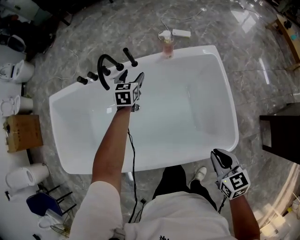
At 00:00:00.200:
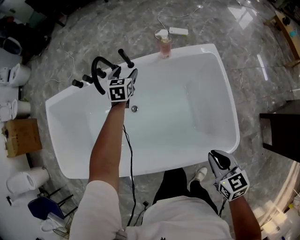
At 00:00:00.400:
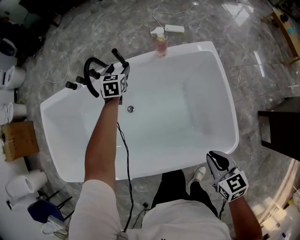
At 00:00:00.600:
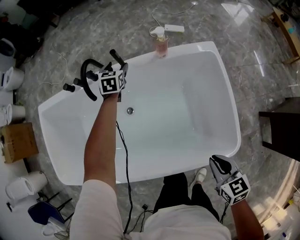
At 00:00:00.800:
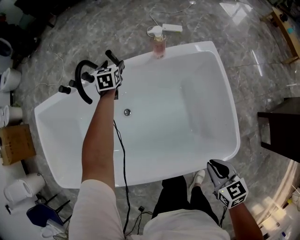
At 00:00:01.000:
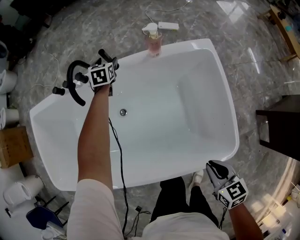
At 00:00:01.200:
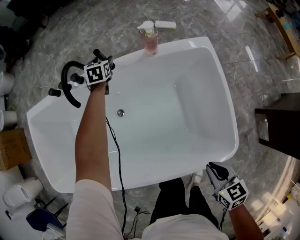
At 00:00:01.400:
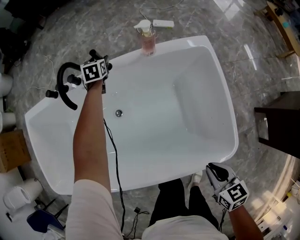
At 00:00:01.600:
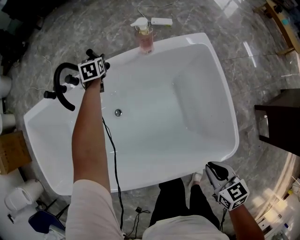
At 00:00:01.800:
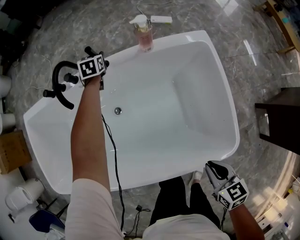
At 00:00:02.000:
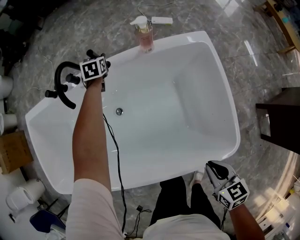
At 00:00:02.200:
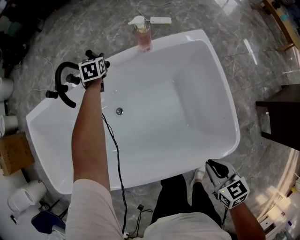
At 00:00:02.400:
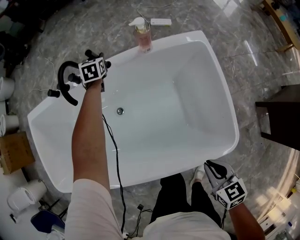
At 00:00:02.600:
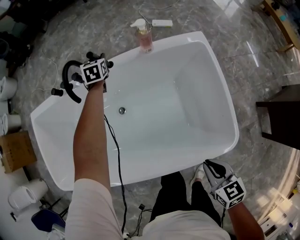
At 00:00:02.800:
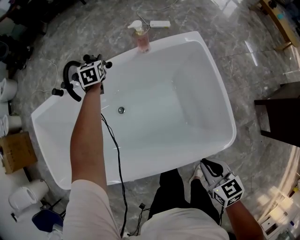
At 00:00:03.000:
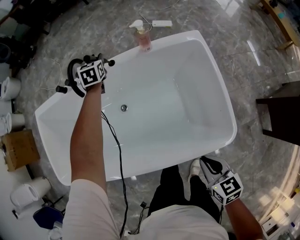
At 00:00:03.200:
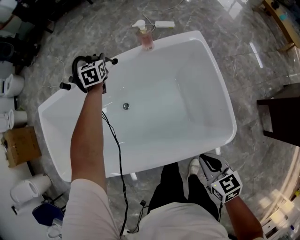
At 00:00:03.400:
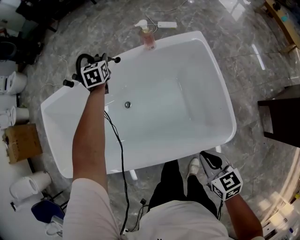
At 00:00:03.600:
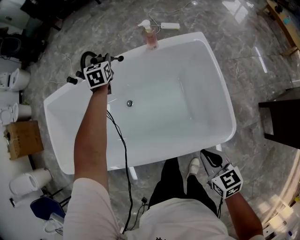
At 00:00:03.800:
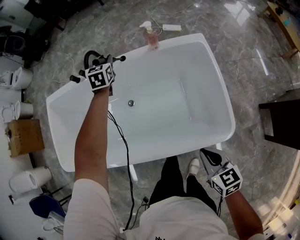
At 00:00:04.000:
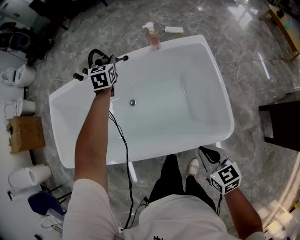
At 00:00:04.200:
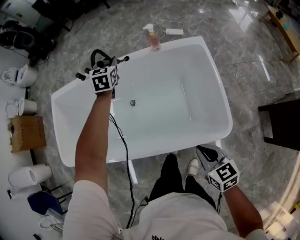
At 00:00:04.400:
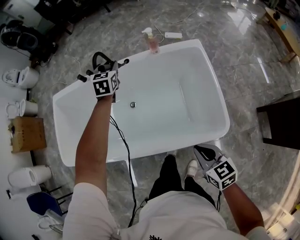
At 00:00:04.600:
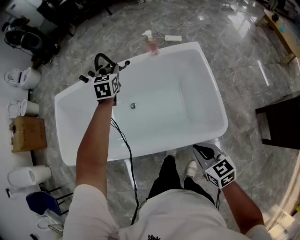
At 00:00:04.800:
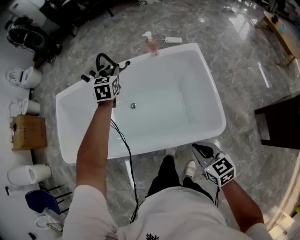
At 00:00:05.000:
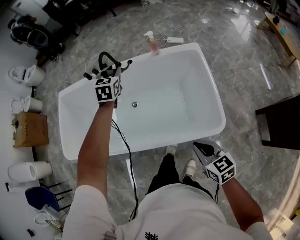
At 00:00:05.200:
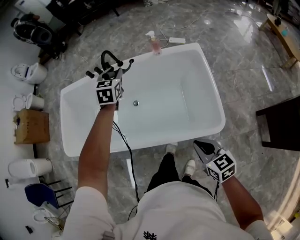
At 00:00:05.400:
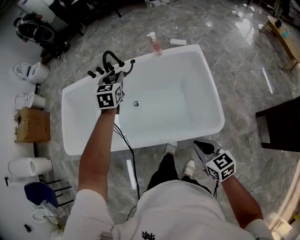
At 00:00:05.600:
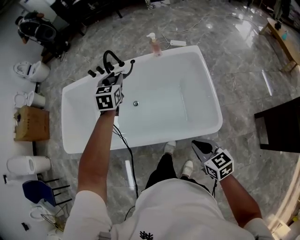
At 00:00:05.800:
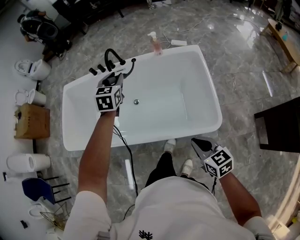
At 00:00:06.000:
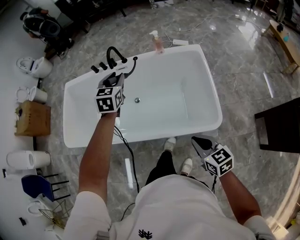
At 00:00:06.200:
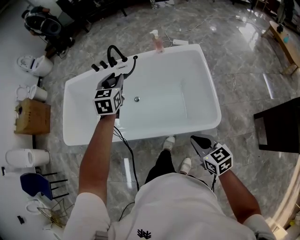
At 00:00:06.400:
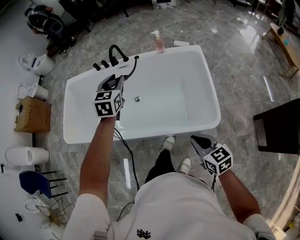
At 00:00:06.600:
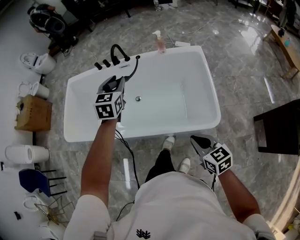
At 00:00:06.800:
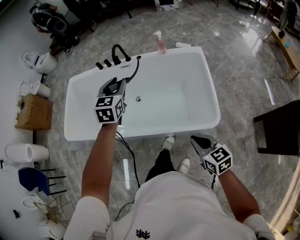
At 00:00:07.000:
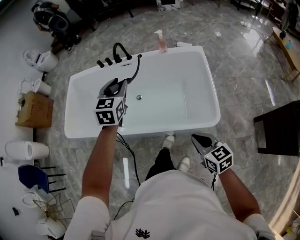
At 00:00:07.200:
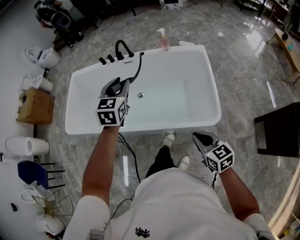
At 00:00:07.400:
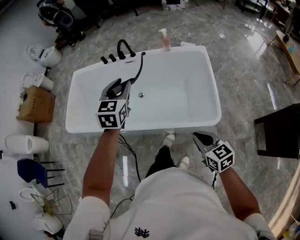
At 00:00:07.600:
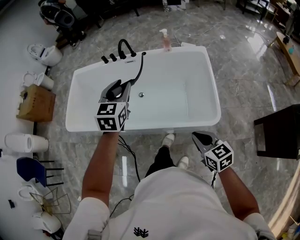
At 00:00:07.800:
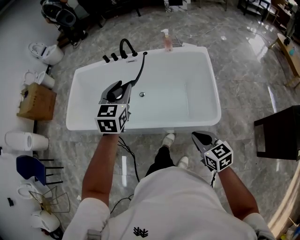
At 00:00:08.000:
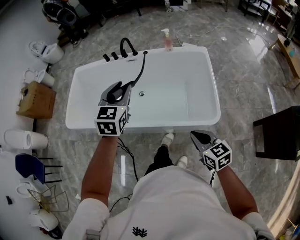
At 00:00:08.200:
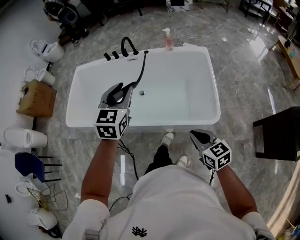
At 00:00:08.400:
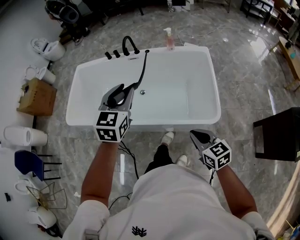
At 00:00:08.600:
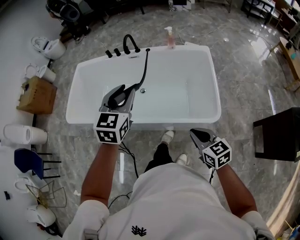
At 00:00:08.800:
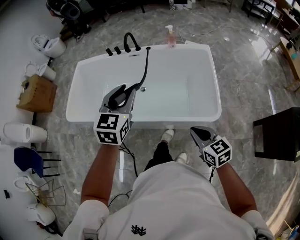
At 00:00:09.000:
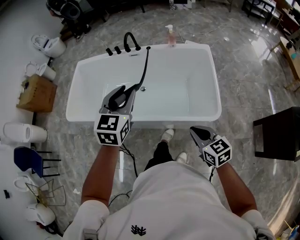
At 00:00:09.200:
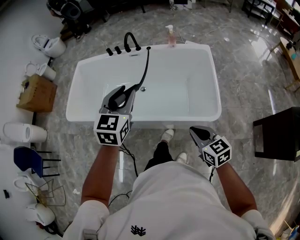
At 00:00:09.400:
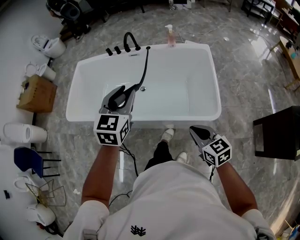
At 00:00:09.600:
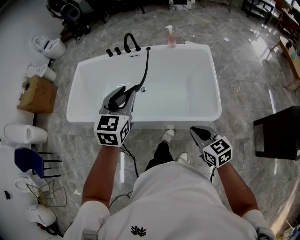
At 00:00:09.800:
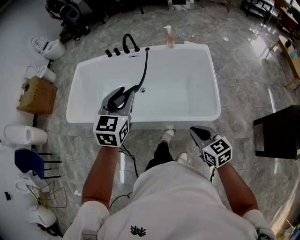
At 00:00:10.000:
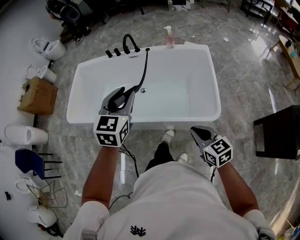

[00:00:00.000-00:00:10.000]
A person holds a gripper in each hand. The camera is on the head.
00:00:00.000 to 00:00:01.400: The left gripper travels forward and downward by some 25 cm. The right gripper moves downward, about 10 cm.
00:00:01.400 to 00:00:02.800: The left gripper heads upward, covering approximately 10 cm, and closes up. Meanwhile the right gripper ends up roughly 5 cm from where it was.
00:00:02.800 to 00:00:04.200: The left gripper moves backward and upward, some 25 cm. Meanwhile the right gripper moves upward and backward, some 10 cm.
00:00:04.200 to 00:00:05.800: The left gripper is displaced backward and upward by about 25 cm. The right gripper is displaced backward by roughly 10 cm.
00:00:05.800 to 00:00:07.200: The left gripper shifts some 15 cm backward. The right gripper moves backward, about 5 cm.
00:00:07.200 to 00:00:08.600: The left gripper travels backward by some 10 cm.
00:00:08.600 to 00:00:10.000: The grippers make only small movements.

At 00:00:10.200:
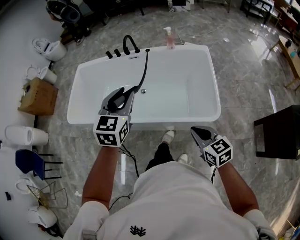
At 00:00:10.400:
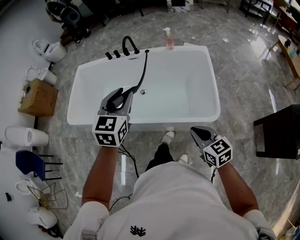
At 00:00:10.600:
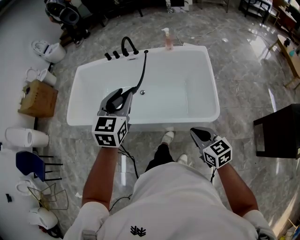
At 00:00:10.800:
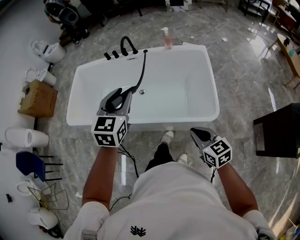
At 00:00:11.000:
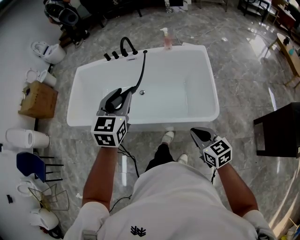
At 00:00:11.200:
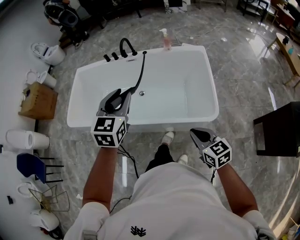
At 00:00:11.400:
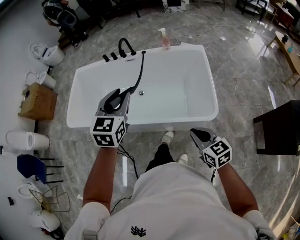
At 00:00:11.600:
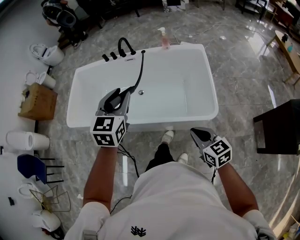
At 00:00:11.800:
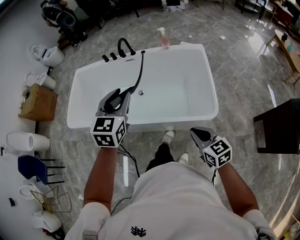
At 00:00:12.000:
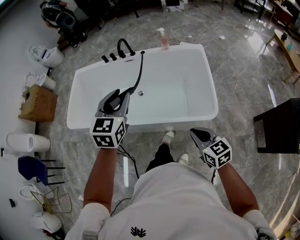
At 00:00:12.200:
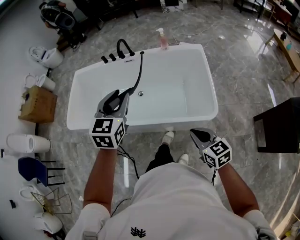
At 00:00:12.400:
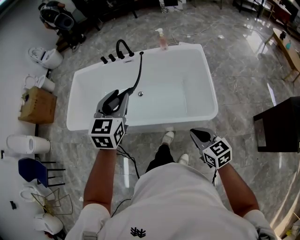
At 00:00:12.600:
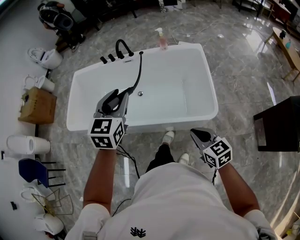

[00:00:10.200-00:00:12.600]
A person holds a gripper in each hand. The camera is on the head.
00:00:10.200 to 00:00:11.400: The grippers move only a little.
00:00:11.400 to 00:00:12.600: Neither gripper changes place.

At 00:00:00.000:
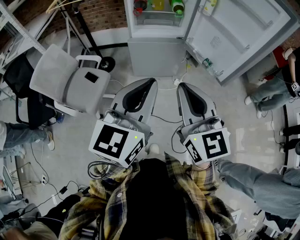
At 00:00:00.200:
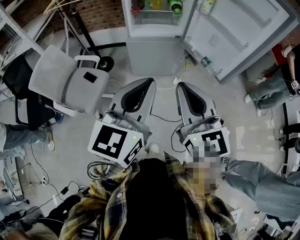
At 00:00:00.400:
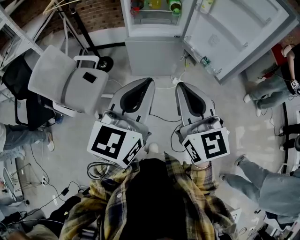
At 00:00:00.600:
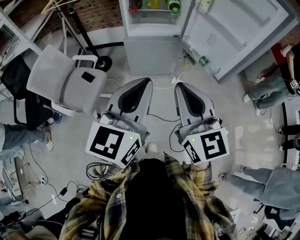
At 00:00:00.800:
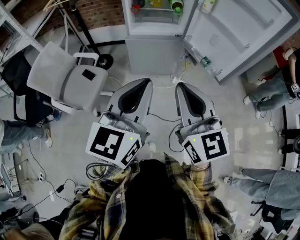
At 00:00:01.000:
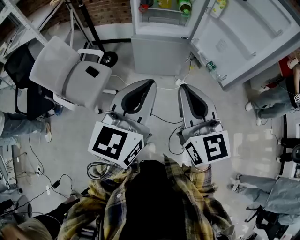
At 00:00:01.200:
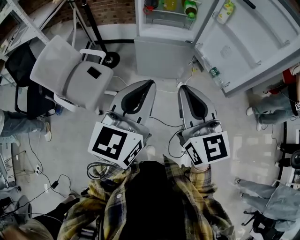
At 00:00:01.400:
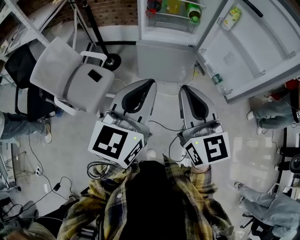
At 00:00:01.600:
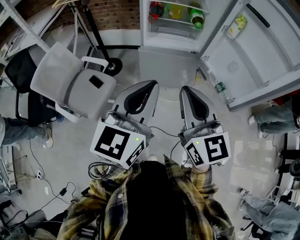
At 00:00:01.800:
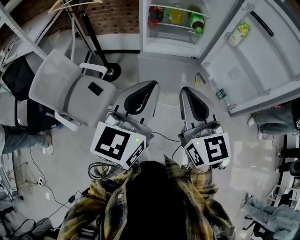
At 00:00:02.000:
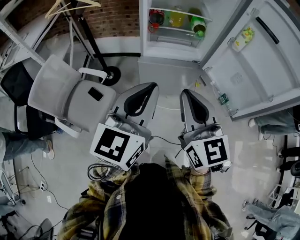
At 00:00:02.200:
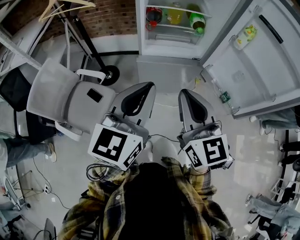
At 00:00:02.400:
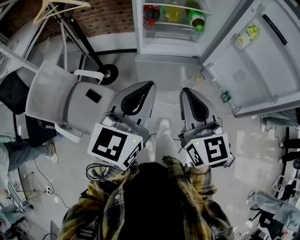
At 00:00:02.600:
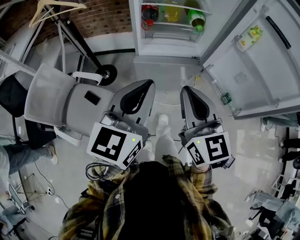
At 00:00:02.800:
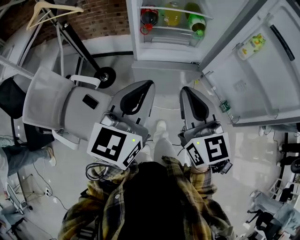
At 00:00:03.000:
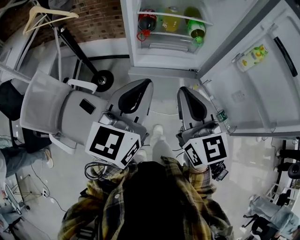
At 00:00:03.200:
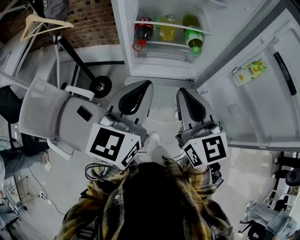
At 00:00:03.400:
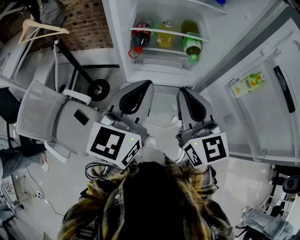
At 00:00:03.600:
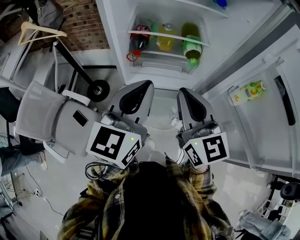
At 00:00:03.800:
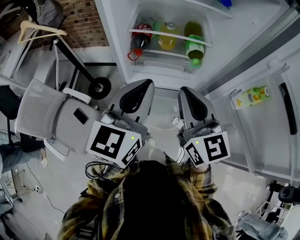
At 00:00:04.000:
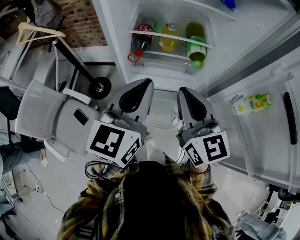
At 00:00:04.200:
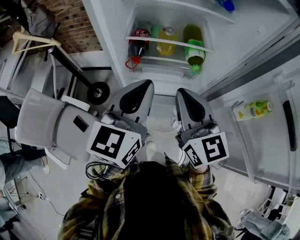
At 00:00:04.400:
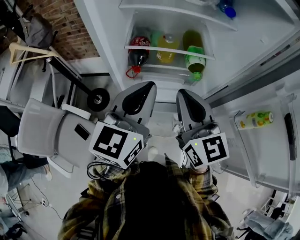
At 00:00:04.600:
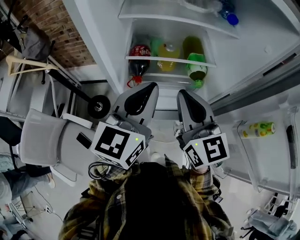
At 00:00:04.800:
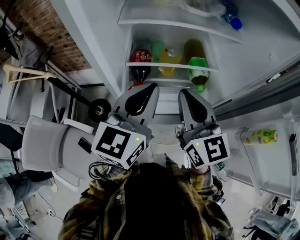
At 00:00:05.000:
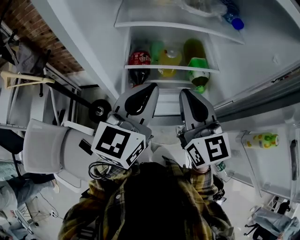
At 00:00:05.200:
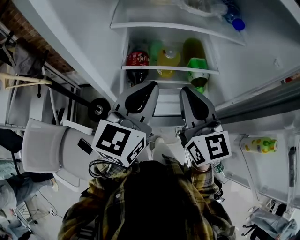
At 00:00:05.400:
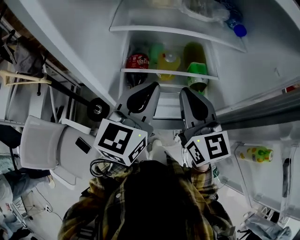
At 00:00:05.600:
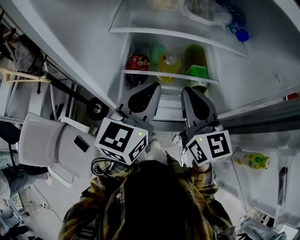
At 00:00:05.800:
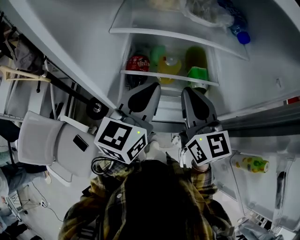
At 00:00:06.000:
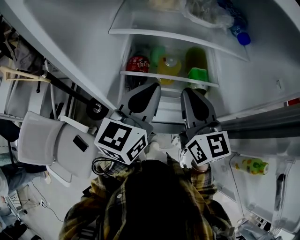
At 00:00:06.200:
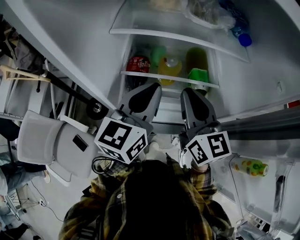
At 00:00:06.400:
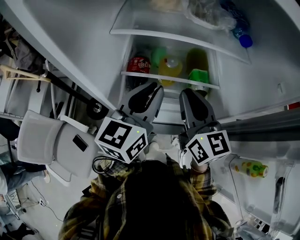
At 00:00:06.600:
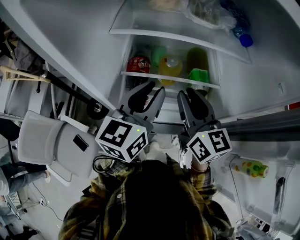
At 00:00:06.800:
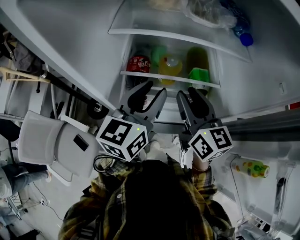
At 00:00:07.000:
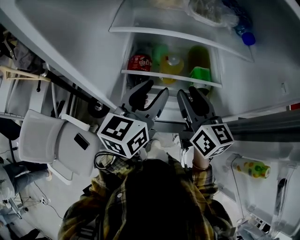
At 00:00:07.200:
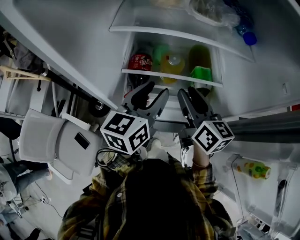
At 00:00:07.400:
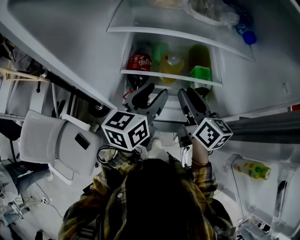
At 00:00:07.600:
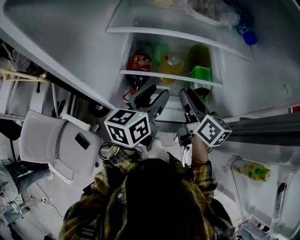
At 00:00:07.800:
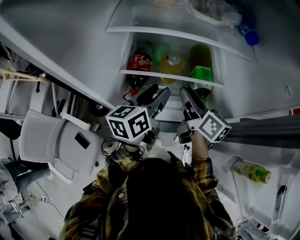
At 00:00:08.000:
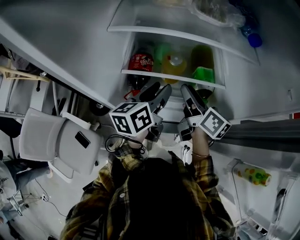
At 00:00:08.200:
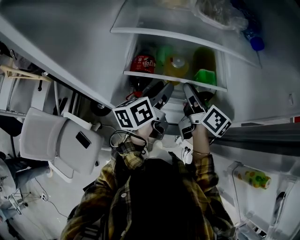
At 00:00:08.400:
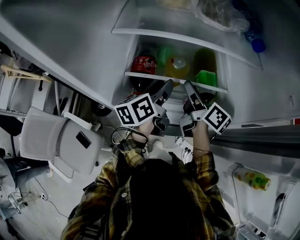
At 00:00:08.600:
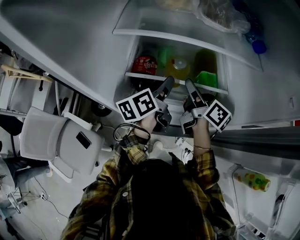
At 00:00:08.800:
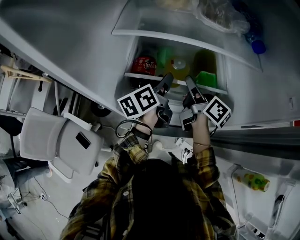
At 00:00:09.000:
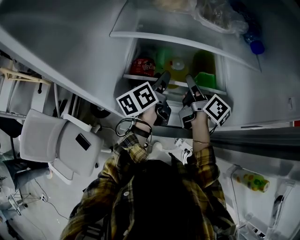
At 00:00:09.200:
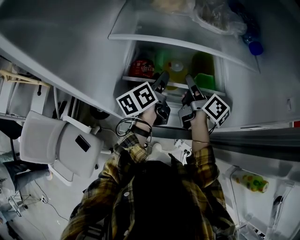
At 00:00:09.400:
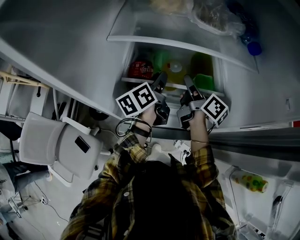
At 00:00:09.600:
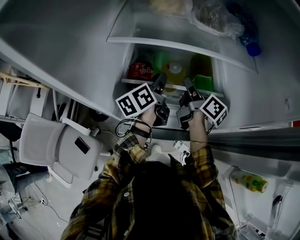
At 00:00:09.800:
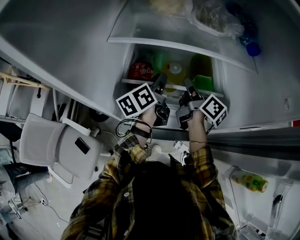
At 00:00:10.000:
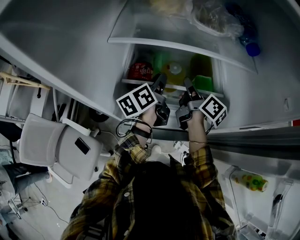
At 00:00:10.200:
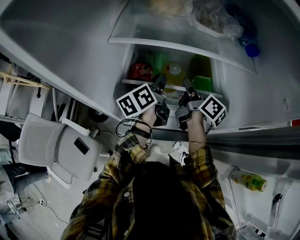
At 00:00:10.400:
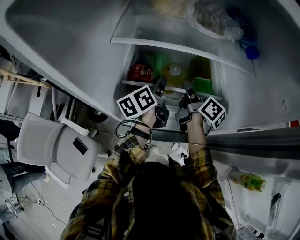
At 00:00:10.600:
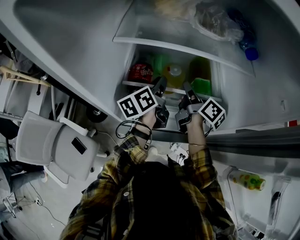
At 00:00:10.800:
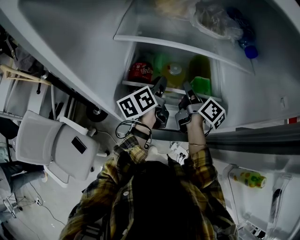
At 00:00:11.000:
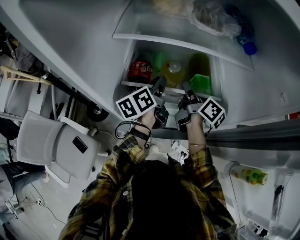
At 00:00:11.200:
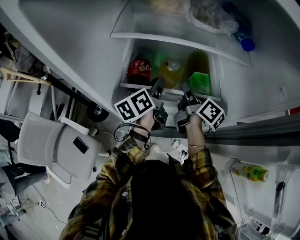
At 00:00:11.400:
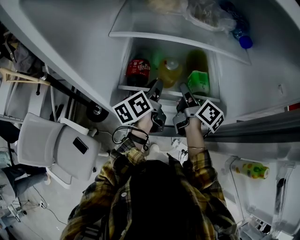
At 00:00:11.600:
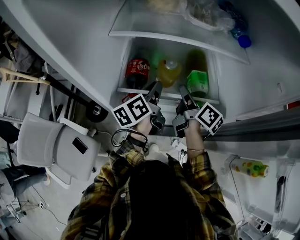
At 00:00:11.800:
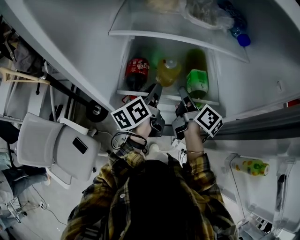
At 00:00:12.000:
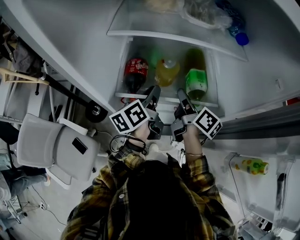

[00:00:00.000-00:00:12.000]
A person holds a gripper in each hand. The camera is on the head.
00:00:00.000 to 00:00:01.600: The grippers both shift forward by some 15 cm.
00:00:01.600 to 00:00:03.000: The two grippers go about 25 cm forward.
00:00:03.000 to 00:00:04.400: The grippers both shift forward by some 20 cm.
00:00:04.400 to 00:00:06.000: Both grippers move forward, about 15 cm.
00:00:06.000 to 00:00:07.600: Both grippers travel together downward, about 10 cm. The left gripper rotates roughly 20 degrees, and opens its fingers; the right gripper turns by about 30 degrees, and opens.
00:00:07.600 to 00:00:09.000: Both grippers move forward, some 10 cm. The right gripper changes its angle by roughly 20 degrees. Meanwhile the left gripper changes its angle by approximately 30 degrees.
00:00:09.000 to 00:00:10.400: The right gripper closes its fingers. The left gripper closes up.
00:00:10.400 to 00:00:12.000: The two grippers go some 10 cm backward.
